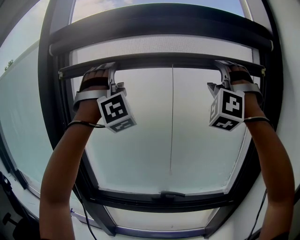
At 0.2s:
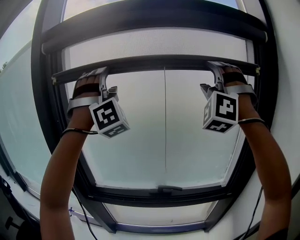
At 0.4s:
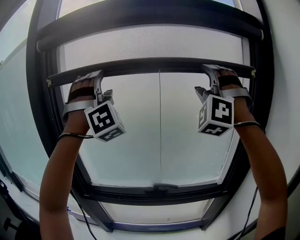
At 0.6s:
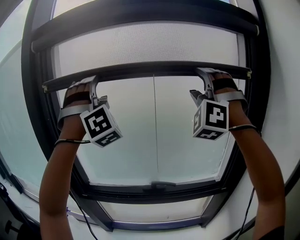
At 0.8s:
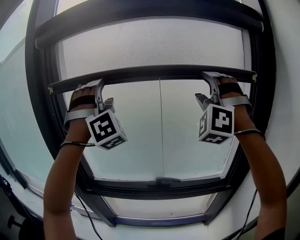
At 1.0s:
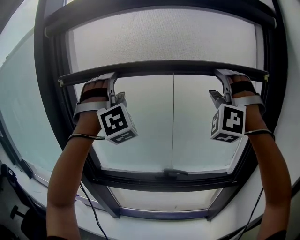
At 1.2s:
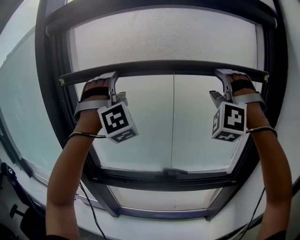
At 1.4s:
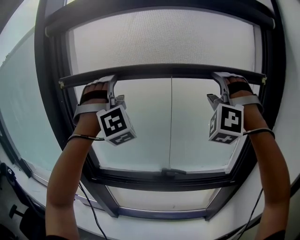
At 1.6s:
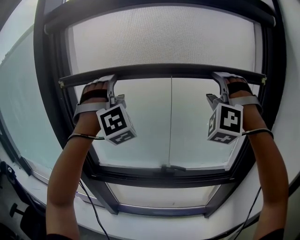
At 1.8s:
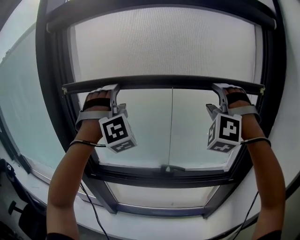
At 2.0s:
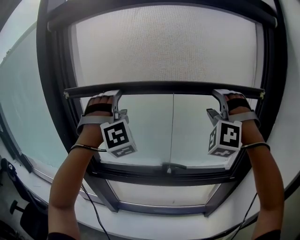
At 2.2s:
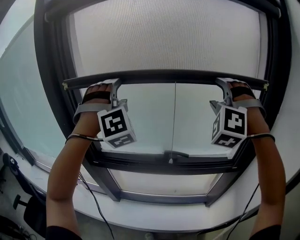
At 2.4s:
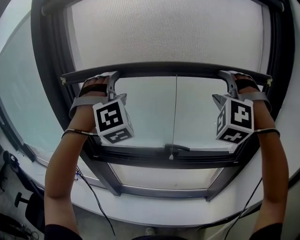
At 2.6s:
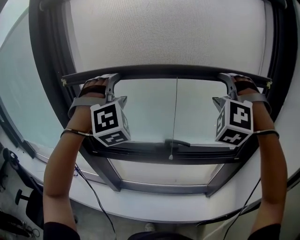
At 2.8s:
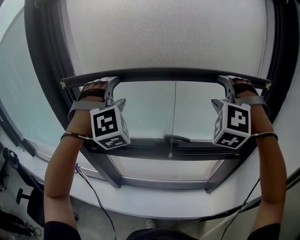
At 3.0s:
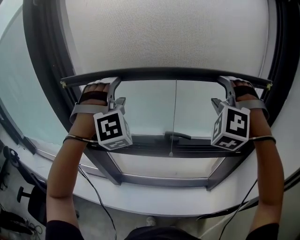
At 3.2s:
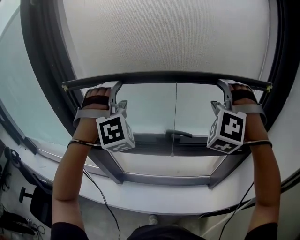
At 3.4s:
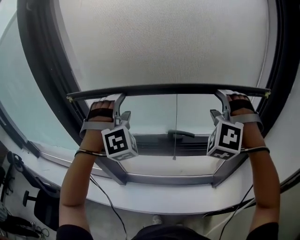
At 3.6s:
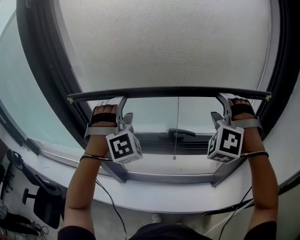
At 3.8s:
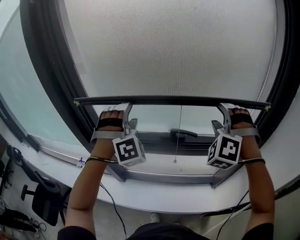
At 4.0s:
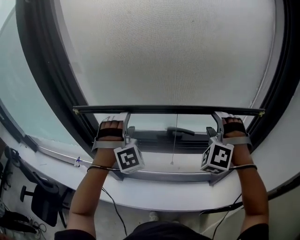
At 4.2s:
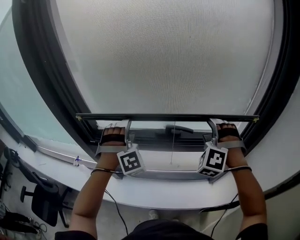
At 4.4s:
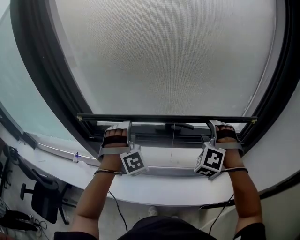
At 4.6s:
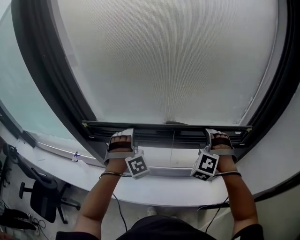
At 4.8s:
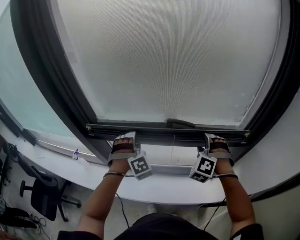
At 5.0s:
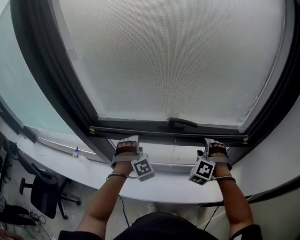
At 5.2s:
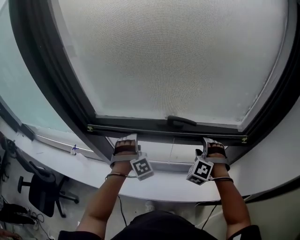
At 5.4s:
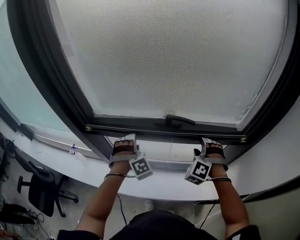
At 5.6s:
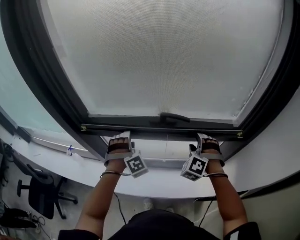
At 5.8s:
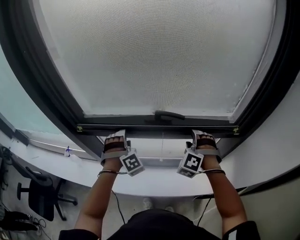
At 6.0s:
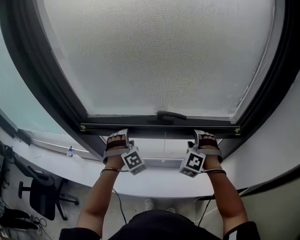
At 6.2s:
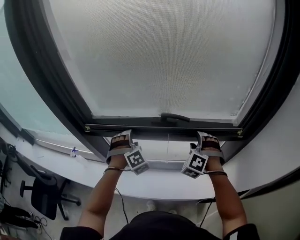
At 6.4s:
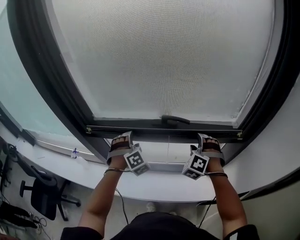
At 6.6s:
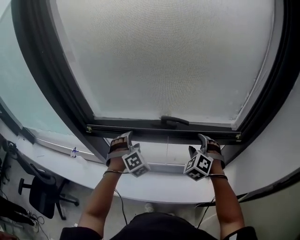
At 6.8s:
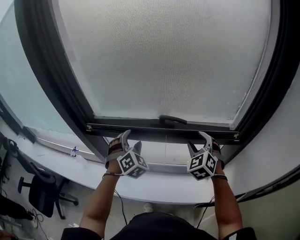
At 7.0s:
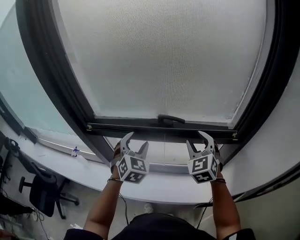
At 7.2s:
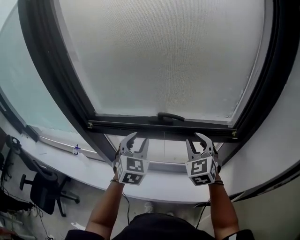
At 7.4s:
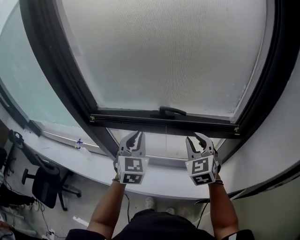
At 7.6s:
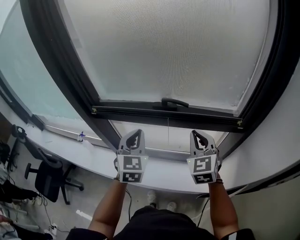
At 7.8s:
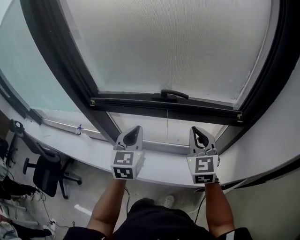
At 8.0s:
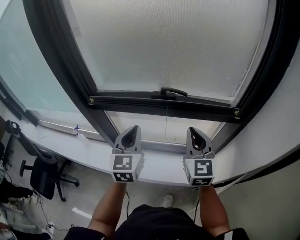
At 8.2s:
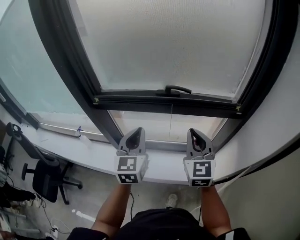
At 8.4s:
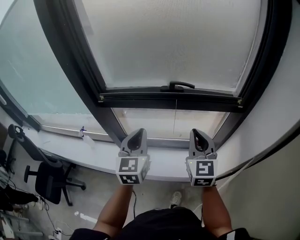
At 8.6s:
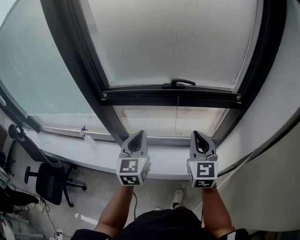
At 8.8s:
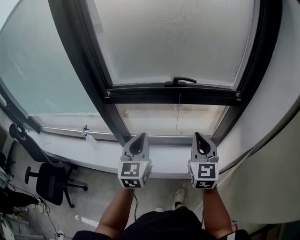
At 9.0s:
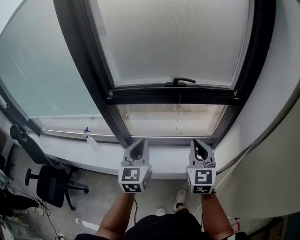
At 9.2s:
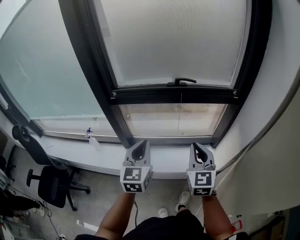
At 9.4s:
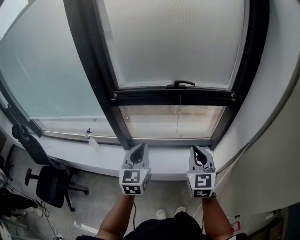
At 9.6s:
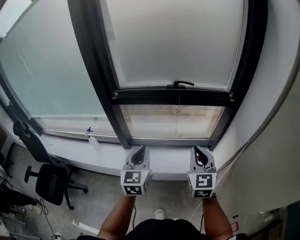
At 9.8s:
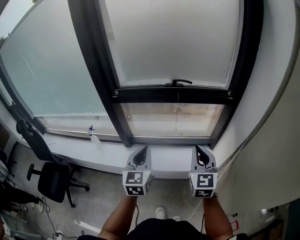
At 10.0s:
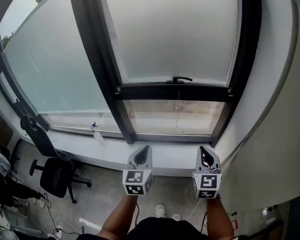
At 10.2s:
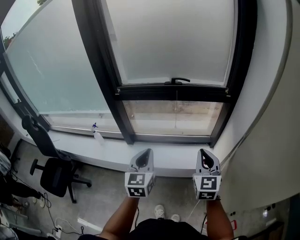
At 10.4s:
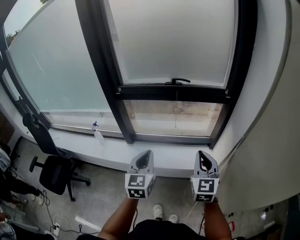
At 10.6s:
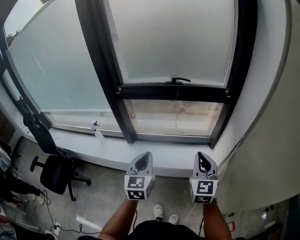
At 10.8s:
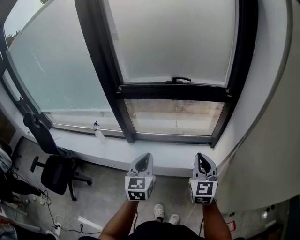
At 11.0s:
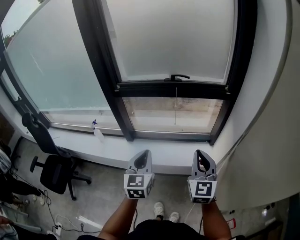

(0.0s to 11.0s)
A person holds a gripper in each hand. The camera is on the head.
0.0s - 1.6s: The two grippers go some 15 cm downward.
1.6s - 3.2s: Both grippers travel together downward, some 15 cm.
3.2s - 4.8s: Both grippers move downward, about 30 cm. The right gripper turns by some 20 degrees. Meanwhile the left gripper turns by approximately 20 degrees.
4.8s - 6.2s: There are only small adjustments of the grippers.
6.2s - 7.8s: Both grippers move backward and upward, roughly 15 cm. The right gripper rotates around the line of its fingers by about 50 degrees, clockwise from behind, and closes up; the left gripper twists about 70 degrees counterclockwise, seen from behind, and closes its fingers.
7.8s - 9.4s: The left gripper heads backward and to the left, covering approximately 25 cm. Meanwhile the right gripper heads backward, covering some 25 cm.
9.4s - 11.0s: Both grippers move backward and to the right, some 10 cm.

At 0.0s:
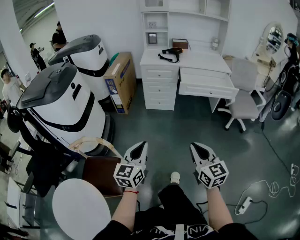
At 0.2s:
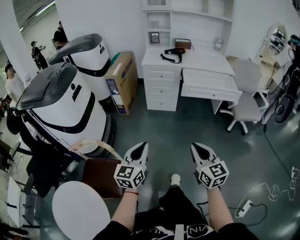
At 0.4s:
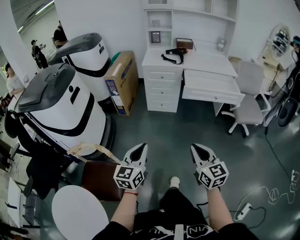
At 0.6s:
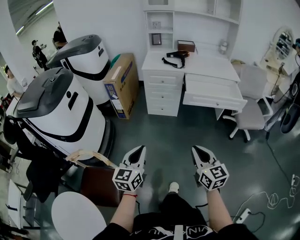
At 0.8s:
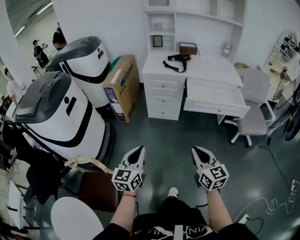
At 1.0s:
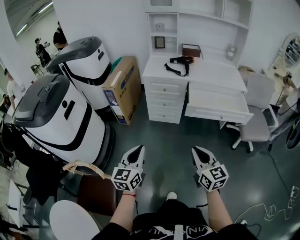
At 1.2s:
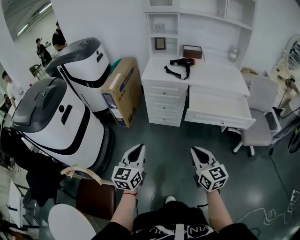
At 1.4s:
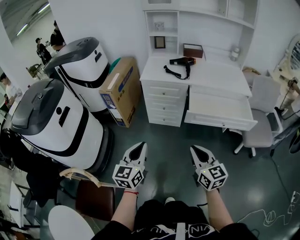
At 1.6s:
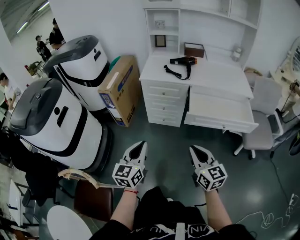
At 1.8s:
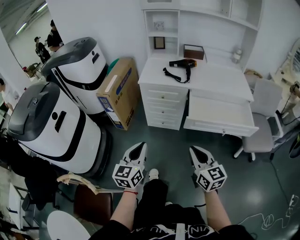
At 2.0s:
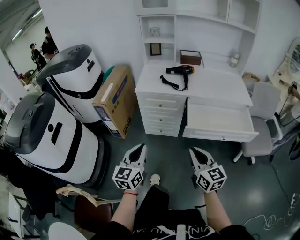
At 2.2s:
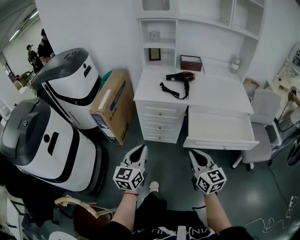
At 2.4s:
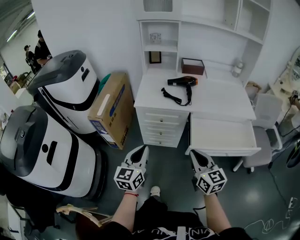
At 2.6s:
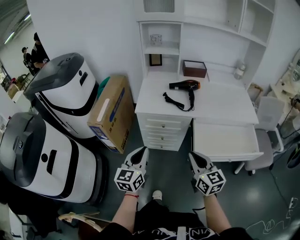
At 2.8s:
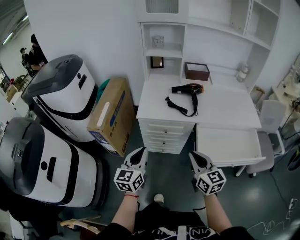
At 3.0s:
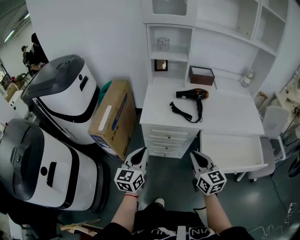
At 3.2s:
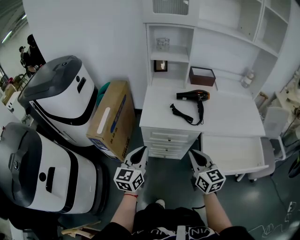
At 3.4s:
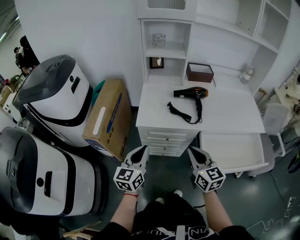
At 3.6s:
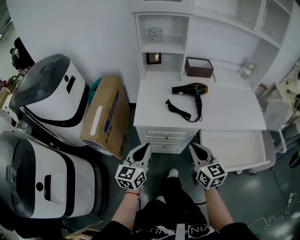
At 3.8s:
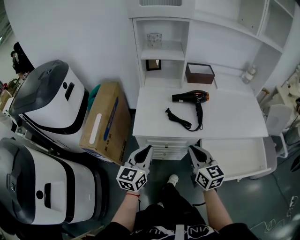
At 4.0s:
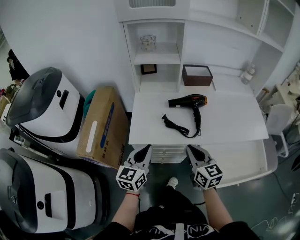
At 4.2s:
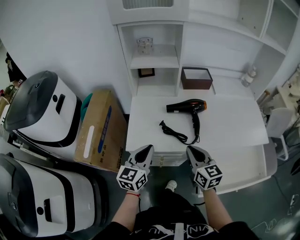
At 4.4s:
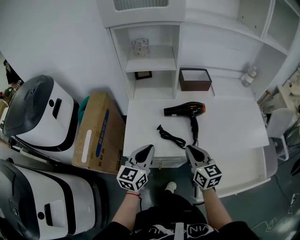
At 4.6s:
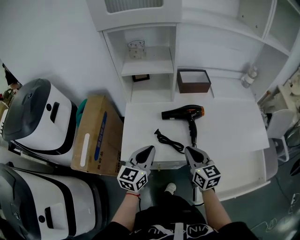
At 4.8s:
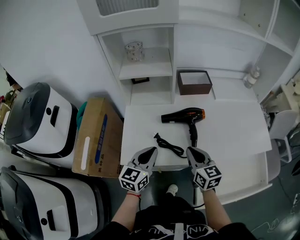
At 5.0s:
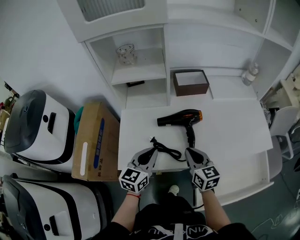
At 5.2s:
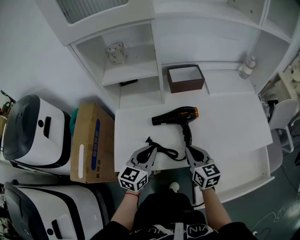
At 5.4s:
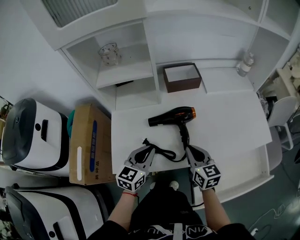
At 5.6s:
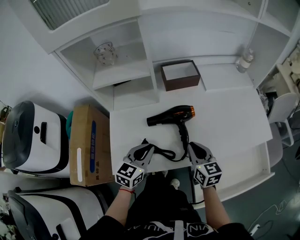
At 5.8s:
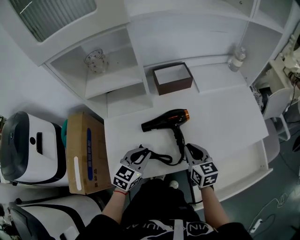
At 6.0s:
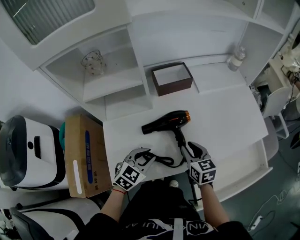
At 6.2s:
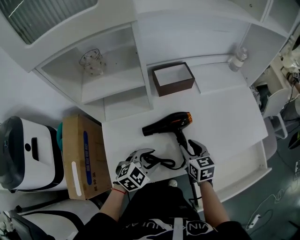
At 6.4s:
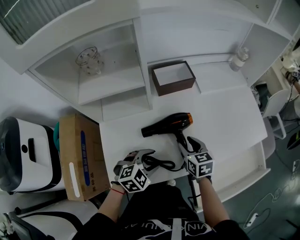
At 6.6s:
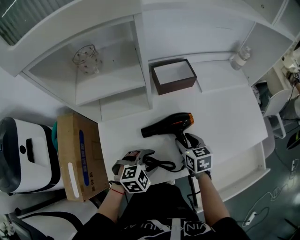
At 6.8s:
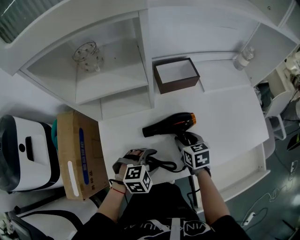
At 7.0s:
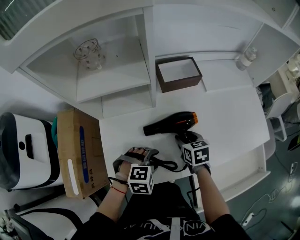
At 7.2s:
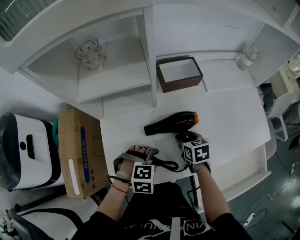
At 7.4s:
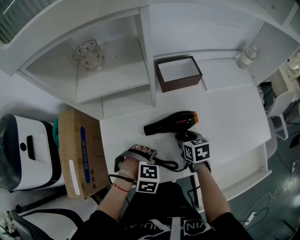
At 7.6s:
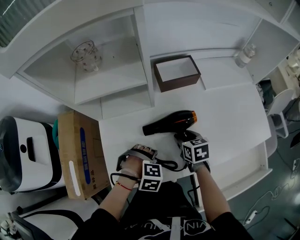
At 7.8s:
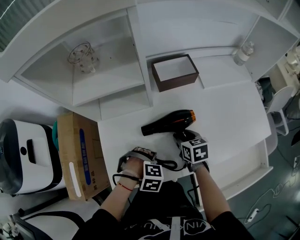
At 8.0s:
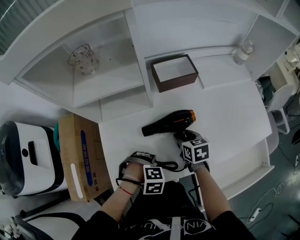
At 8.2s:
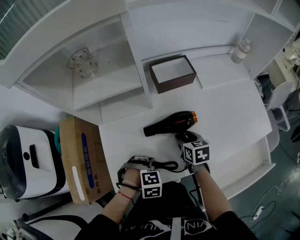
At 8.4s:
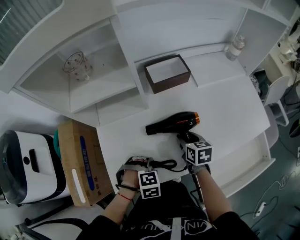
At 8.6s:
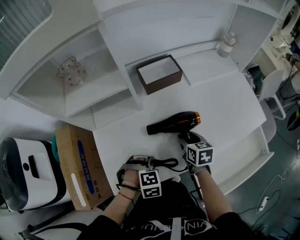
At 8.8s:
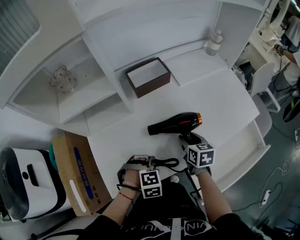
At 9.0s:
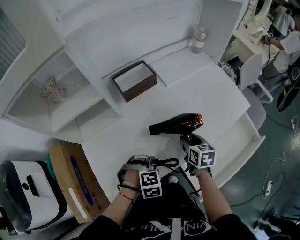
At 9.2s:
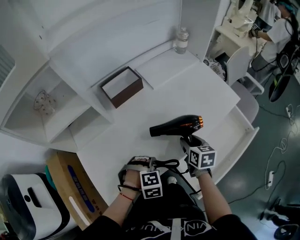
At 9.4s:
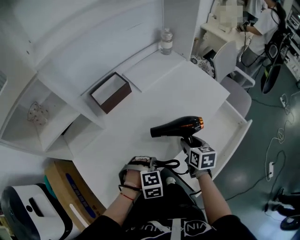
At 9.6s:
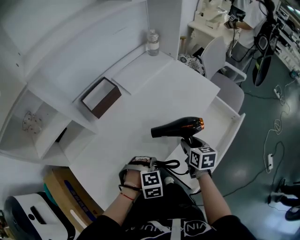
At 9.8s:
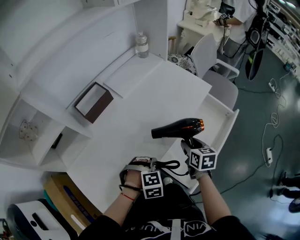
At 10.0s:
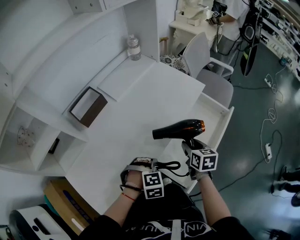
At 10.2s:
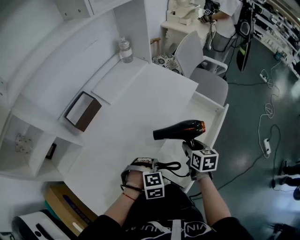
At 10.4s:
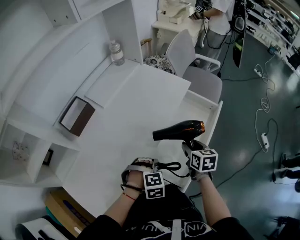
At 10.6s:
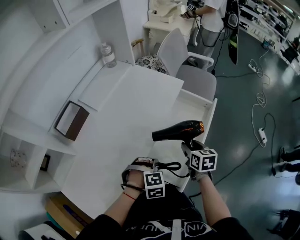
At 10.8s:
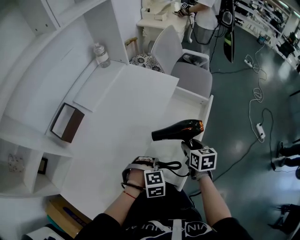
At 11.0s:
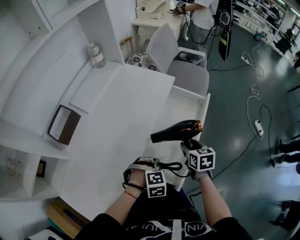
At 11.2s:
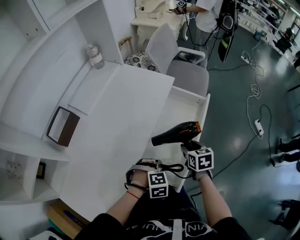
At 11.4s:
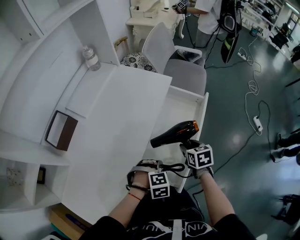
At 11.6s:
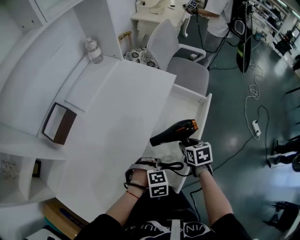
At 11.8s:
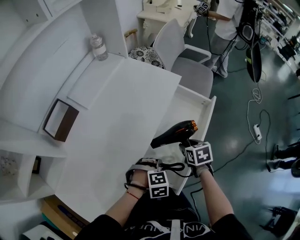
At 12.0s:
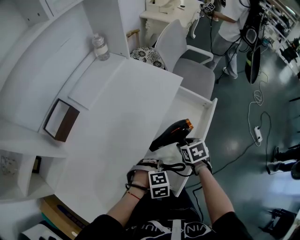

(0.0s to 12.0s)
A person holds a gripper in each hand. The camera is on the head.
0.0s - 1.6s: The two grippers go roughly 35 cm forward.
1.6s - 3.0s: Both grippers travel together forward, some 35 cm.
3.0s - 4.4s: Both grippers travel together forward, approximately 25 cm.
4.4s - 6.0s: The left gripper shifts some 15 cm forward, to the right and downward, and swivels approximately 50 degrees, while the right gripper heads forward, downward and to the right, covering about 15 cm.
6.0s - 7.6s: The right gripper ends up about 10 cm from where it was, and opens; the left gripper is displaced downward by some 10 cm, points its fingers approximately 50 degrees further downward, and opens its fingers.
7.6s - 9.0s: The right gripper shifts by approximately 15 cm, and rotates roughly 30 degrees. The left gripper shifts by some 10 cm, and closes.
9.0s - 10.4s: The right gripper changes place by roughly 25 cm, and swivels some 30 degrees, while the left gripper ends up roughly 20 cm from where it was, and changes its angle by some 30 degrees.
10.4s - 12.0s: The right gripper is displaced downward by roughly 5 cm, and rotates approximately 30 degrees; the left gripper ends up roughly 10 cm from where it was.

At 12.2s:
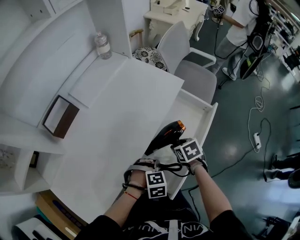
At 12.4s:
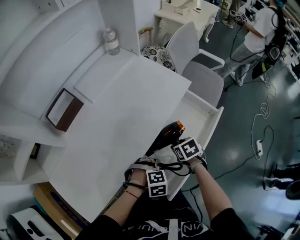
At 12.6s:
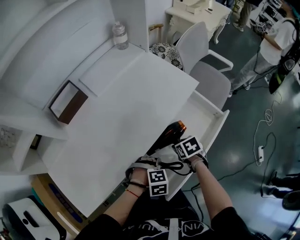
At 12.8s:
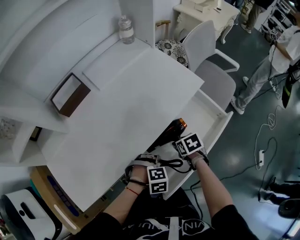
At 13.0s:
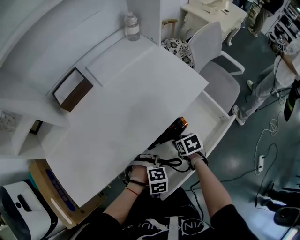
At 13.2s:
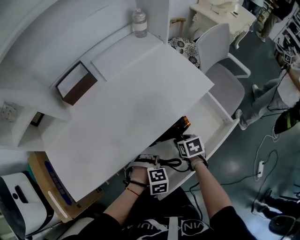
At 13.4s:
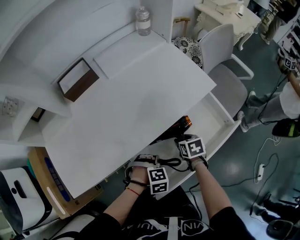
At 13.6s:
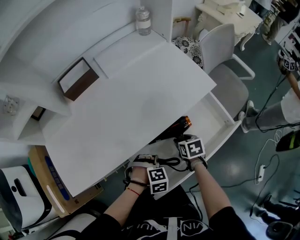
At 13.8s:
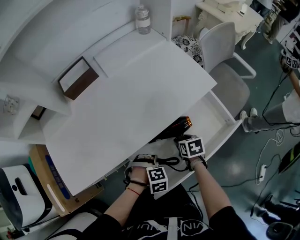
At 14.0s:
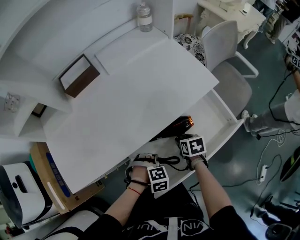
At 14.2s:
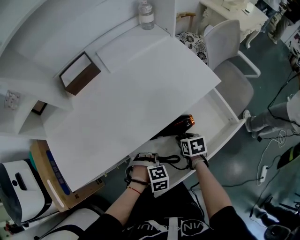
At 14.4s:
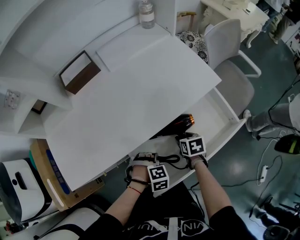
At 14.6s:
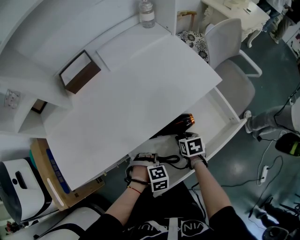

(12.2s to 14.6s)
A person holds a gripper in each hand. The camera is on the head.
12.2s - 13.4s: Both grippers travel together downward, roughly 5 cm. The left gripper rotates about 20 degrees.
13.4s - 14.6s: There are only small adjustments of the grippers.
